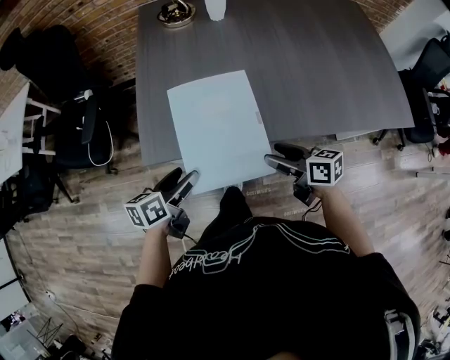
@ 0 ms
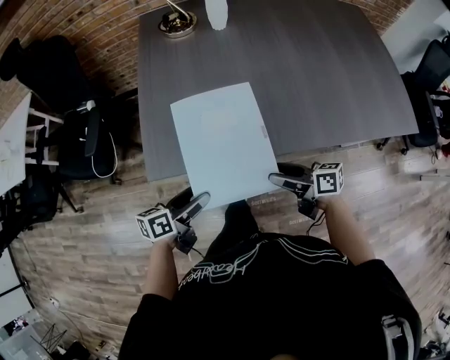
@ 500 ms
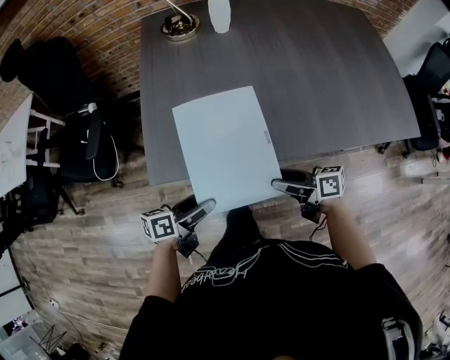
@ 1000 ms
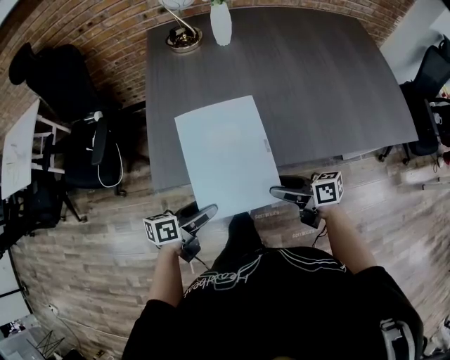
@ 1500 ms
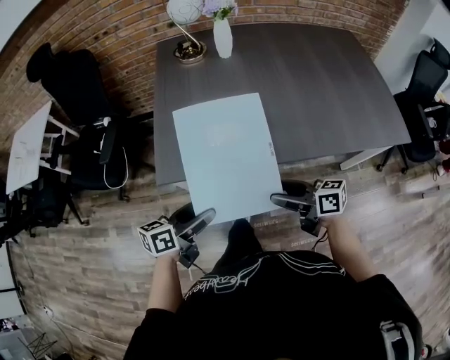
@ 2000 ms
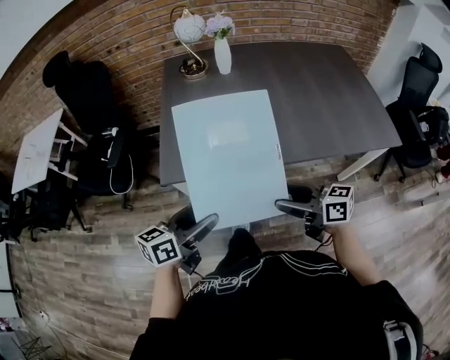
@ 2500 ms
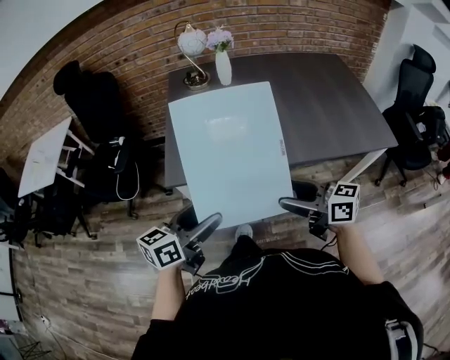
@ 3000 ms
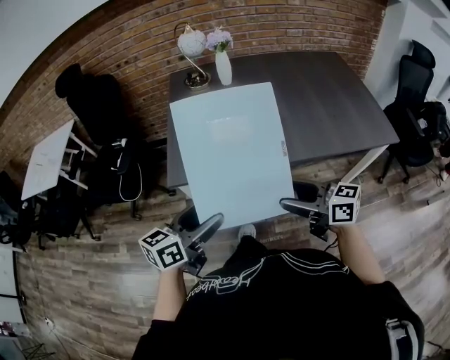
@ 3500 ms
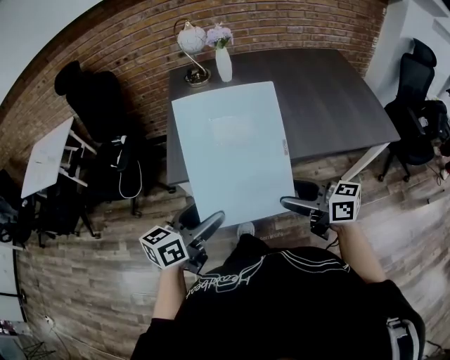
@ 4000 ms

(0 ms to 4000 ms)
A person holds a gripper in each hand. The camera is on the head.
0 ms - 2000 ms: The grippers both shift backward by approximately 5 cm.
2000 ms - 4000 ms: Both grippers travel together upward and backward, approximately 15 cm.

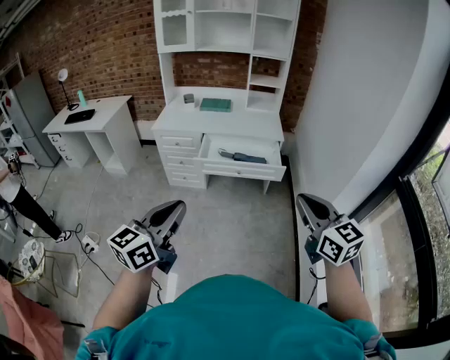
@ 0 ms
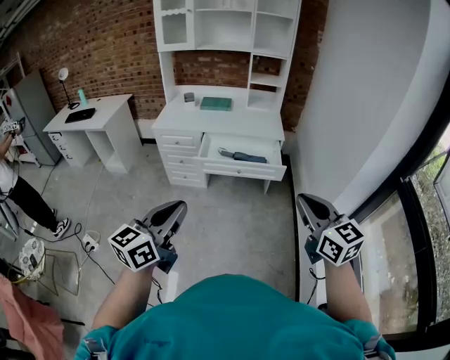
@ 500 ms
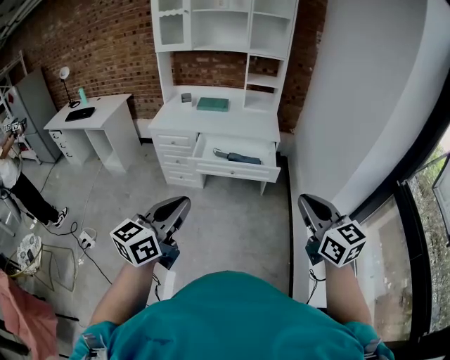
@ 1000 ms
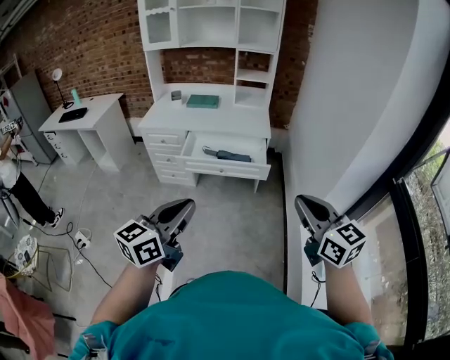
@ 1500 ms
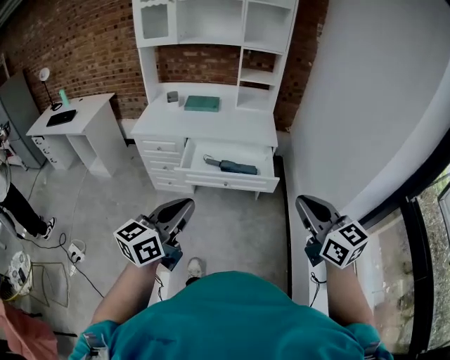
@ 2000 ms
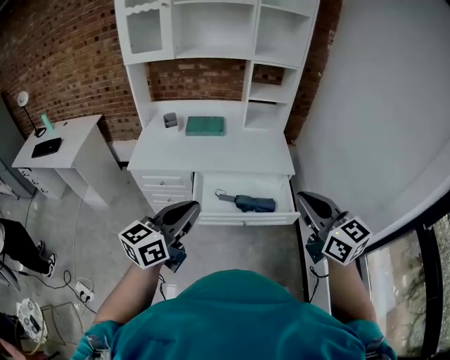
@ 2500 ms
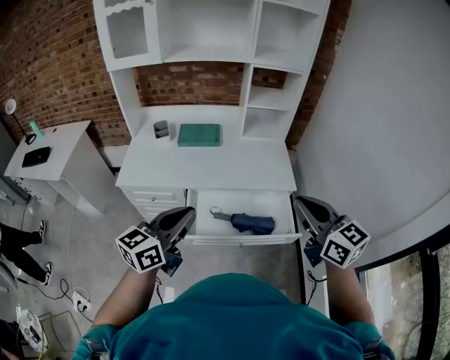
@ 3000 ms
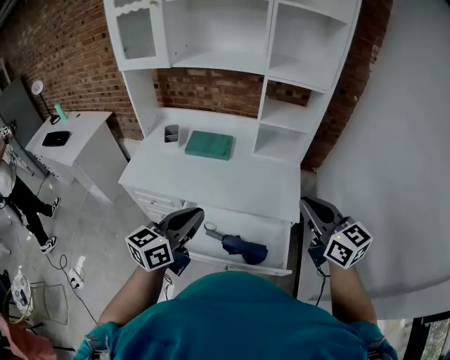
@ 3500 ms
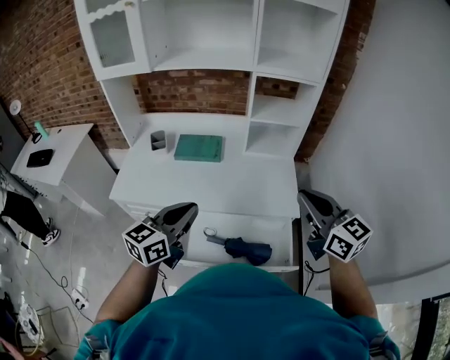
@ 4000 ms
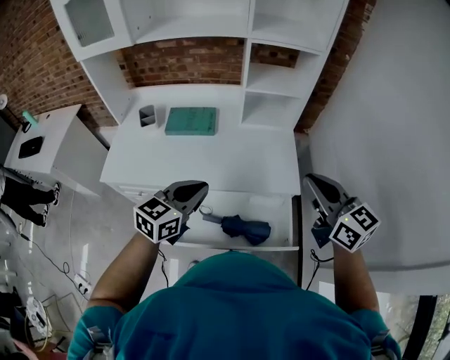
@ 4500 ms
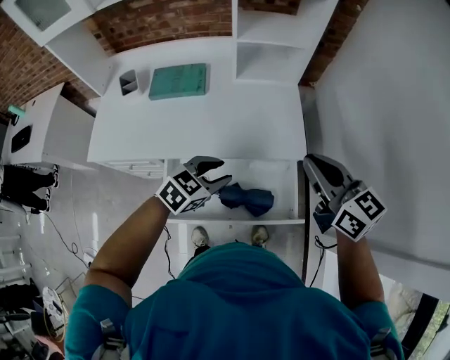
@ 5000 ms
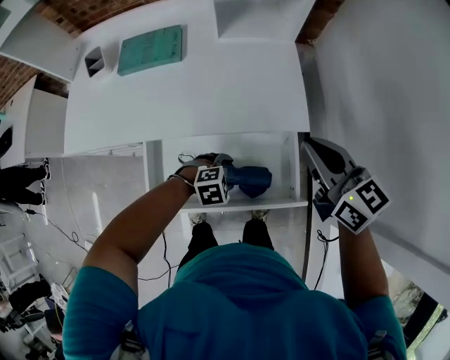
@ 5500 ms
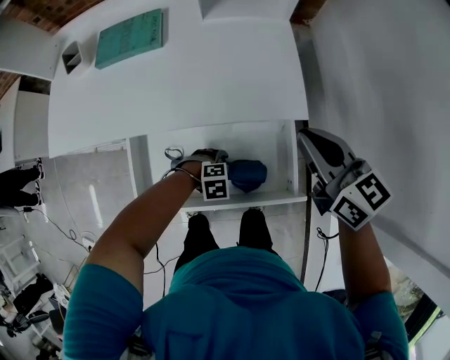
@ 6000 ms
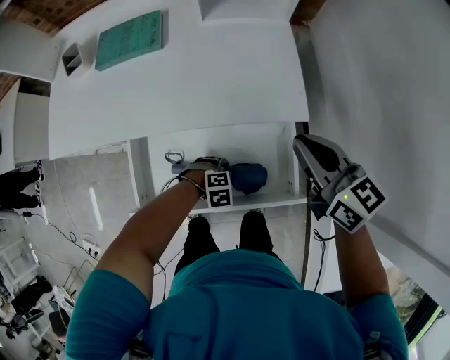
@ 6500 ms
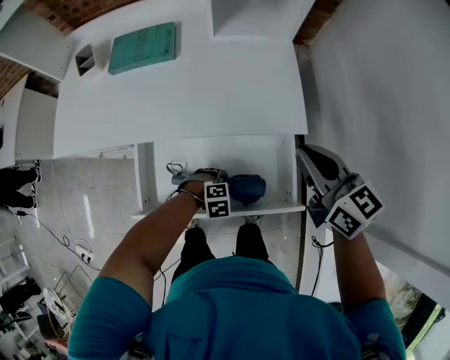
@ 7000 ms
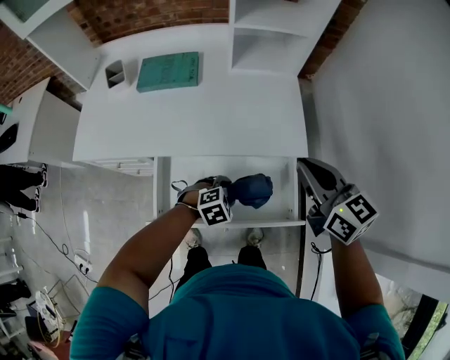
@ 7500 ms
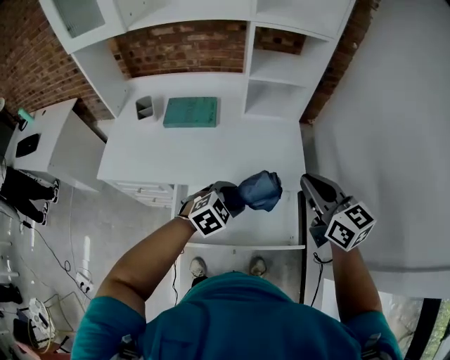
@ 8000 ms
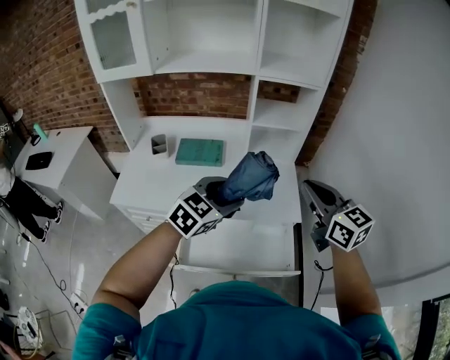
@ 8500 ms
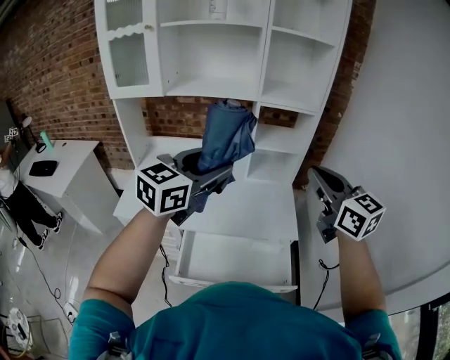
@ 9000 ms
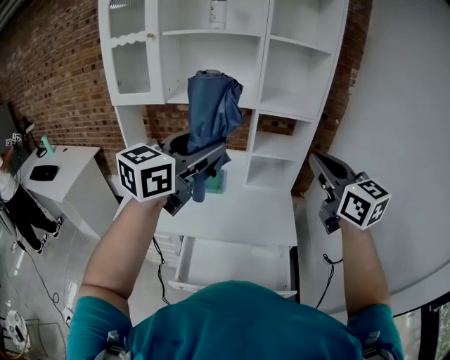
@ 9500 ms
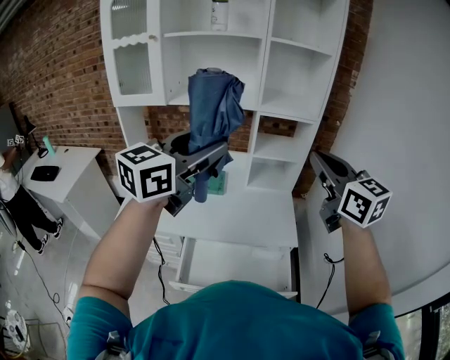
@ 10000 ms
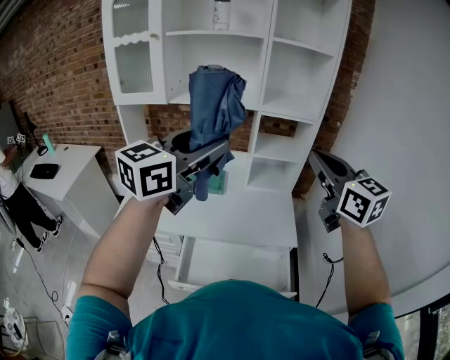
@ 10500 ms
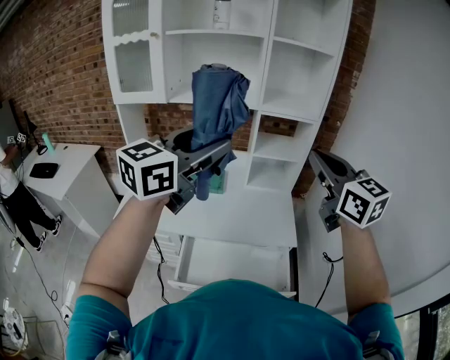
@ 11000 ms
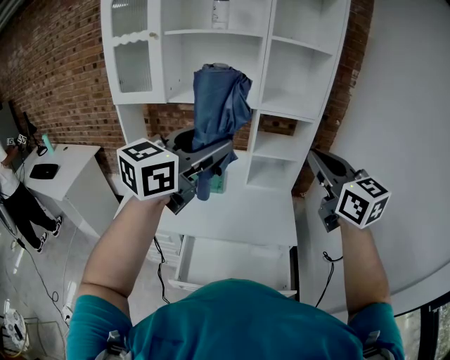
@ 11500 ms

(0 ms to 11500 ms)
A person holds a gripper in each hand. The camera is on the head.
0 ms - 2000 ms: The right gripper moves forward, some 15 cm. The left gripper is displaced forward and to the right by about 20 cm.
2000 ms - 4000 ms: Both grippers are carried forward, roughly 50 cm.
4000 ms - 6000 ms: The left gripper is displaced downward by some 50 cm, points its fingers some 70 degrees further downward, and opens up, while the right gripper travels downward by about 20 cm.
6000 ms - 7500 ms: The right gripper shifts about 5 cm upward. Meanwhile the left gripper heads upward, covering about 10 cm, and turns by some 20 degrees.
7500 ms - 9500 ms: The right gripper heads upward, covering some 35 cm, and turns by some 20 degrees. The left gripper shifts roughly 60 cm upward, and points its fingers about 70 degrees further upward.
9500 ms - 11500 ms: The grippers move only a little.

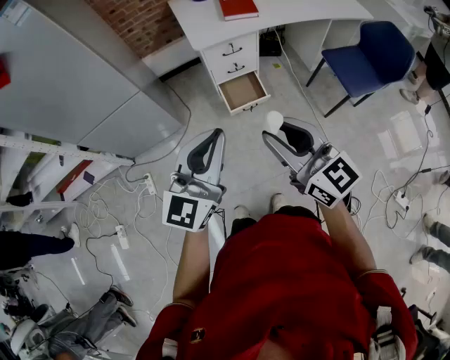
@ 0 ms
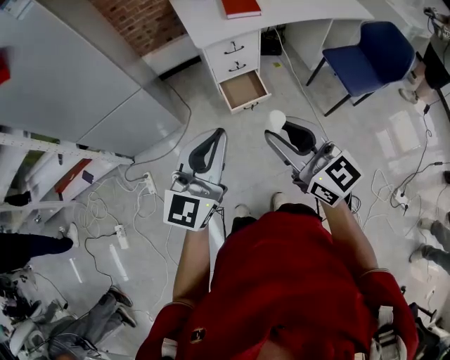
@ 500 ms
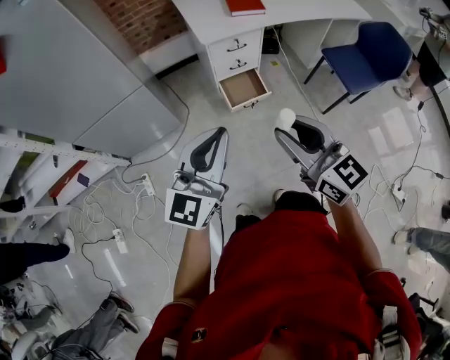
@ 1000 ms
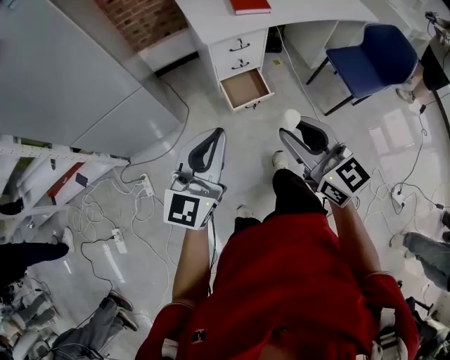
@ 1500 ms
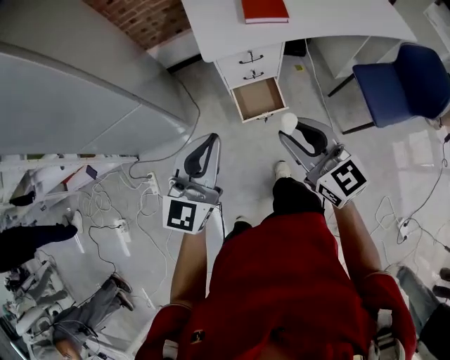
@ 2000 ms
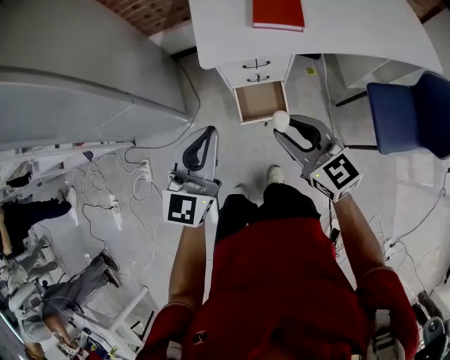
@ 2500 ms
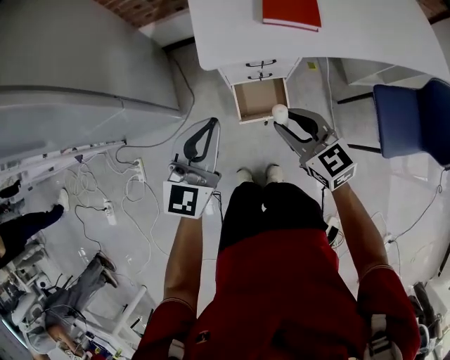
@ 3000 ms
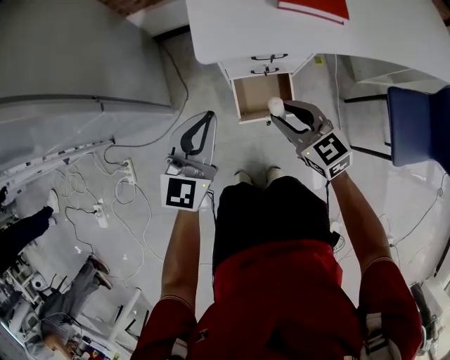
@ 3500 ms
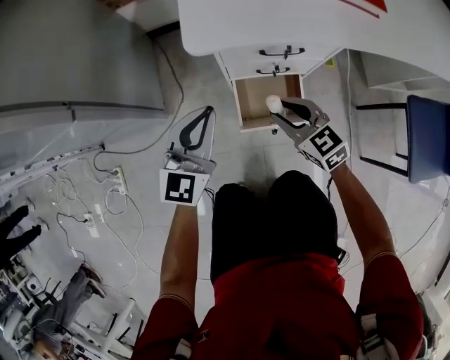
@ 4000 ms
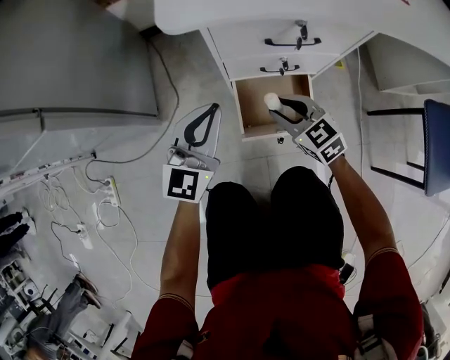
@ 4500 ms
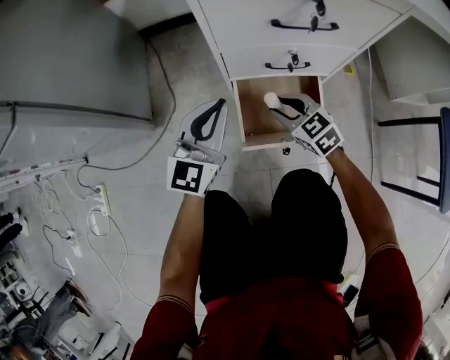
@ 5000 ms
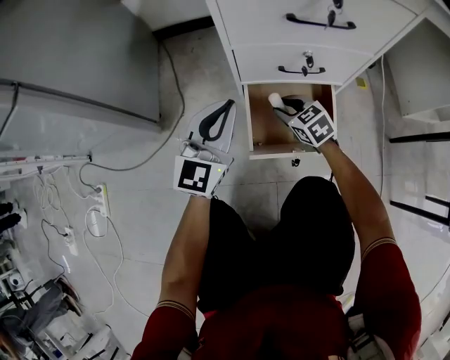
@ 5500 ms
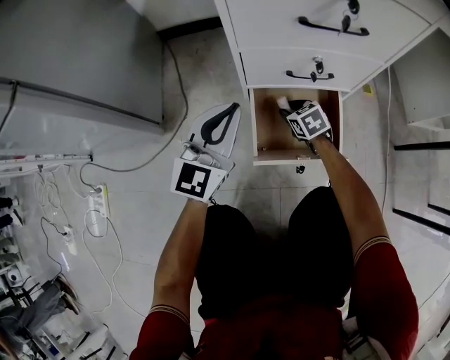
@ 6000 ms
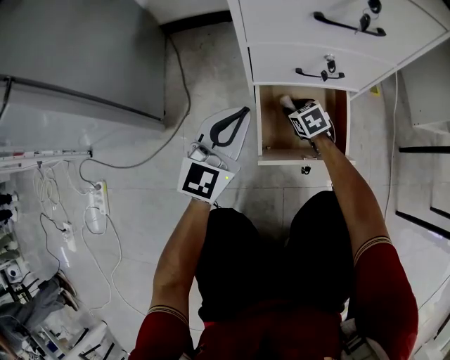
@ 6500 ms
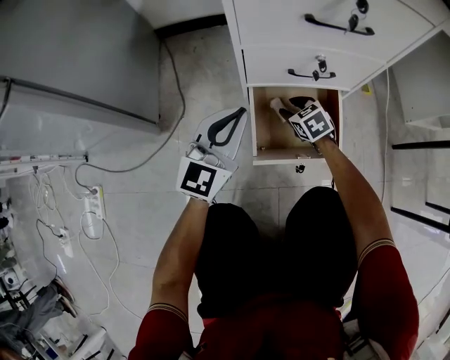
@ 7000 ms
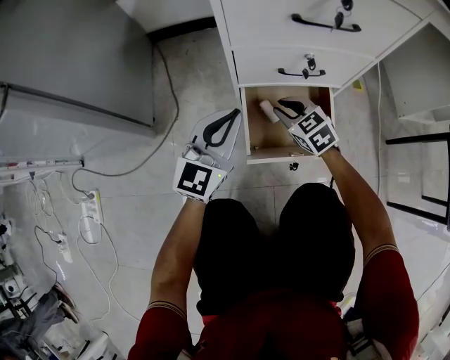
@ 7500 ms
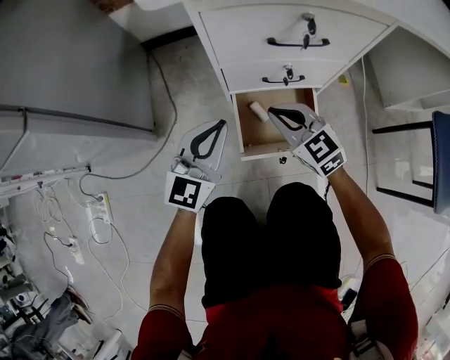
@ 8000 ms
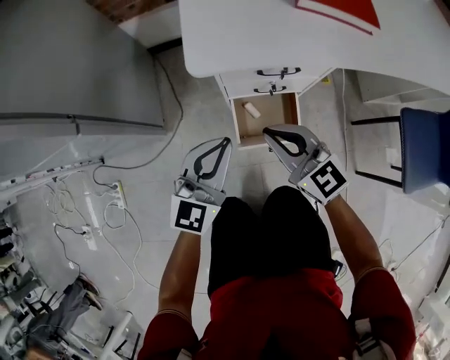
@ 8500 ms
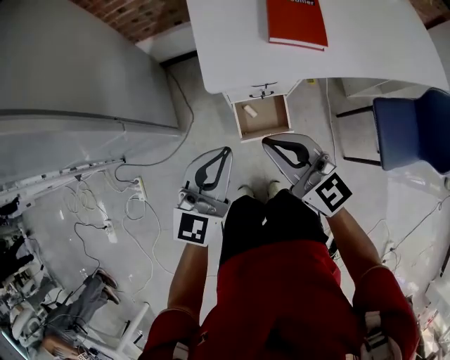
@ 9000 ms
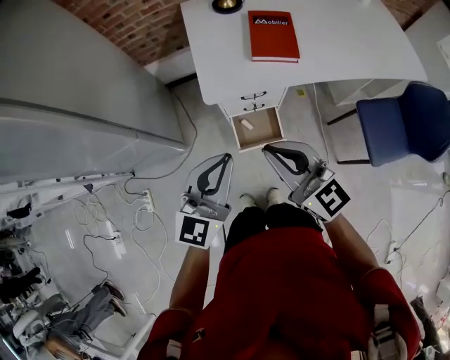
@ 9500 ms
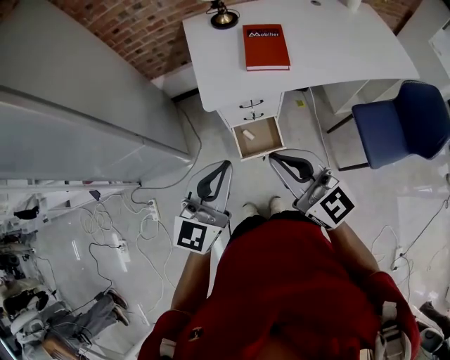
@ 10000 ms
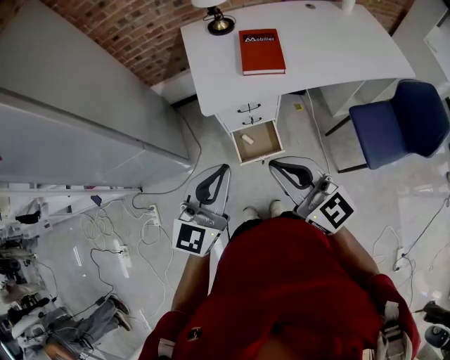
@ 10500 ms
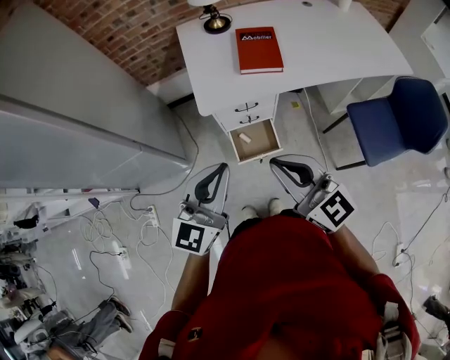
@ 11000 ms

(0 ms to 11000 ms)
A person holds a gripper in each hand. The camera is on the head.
0 ms - 2000 ms: The right gripper travels forward and downward by some 25 cm. The left gripper heads forward, covering about 20 cm.
2000 ms - 3500 ms: The two grippers go about 35 cm downward and forward. The right gripper changes its angle by about 20 degrees.
3500 ms - 5500 ms: The grippers both shift downward by roughly 40 cm.
5500 ms - 7500 ms: The right gripper reaches some 10 cm downward, then returns.
7500 ms - 9000 ms: The two grippers go about 60 cm upward. The right gripper angles its fingers upward, by roughly 40 degrees.
9000 ms - 11000 ms: The right gripper heads upward, backward and to the right, covering some 20 cm, while the left gripper moves upward and backward, roughly 15 cm.
